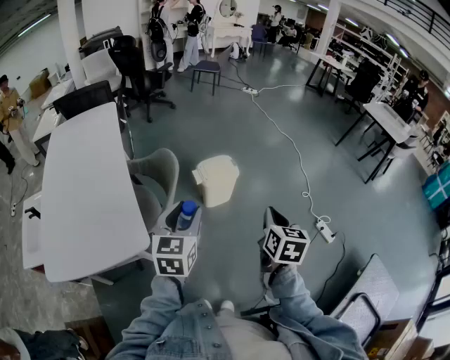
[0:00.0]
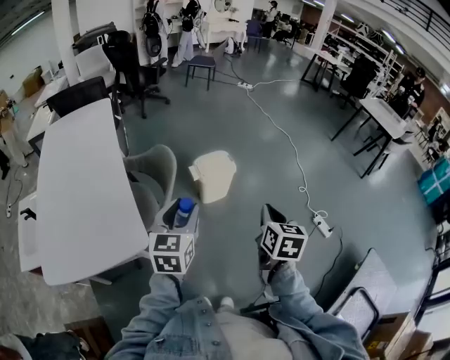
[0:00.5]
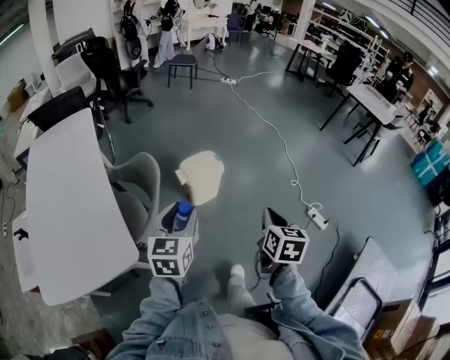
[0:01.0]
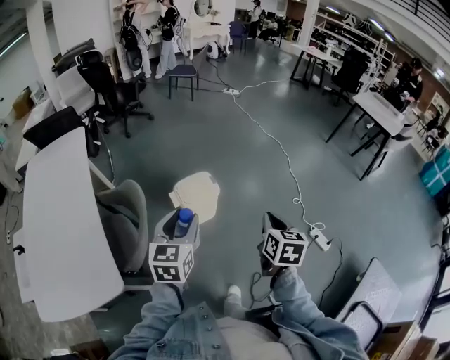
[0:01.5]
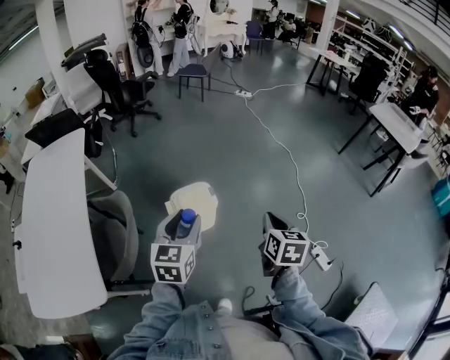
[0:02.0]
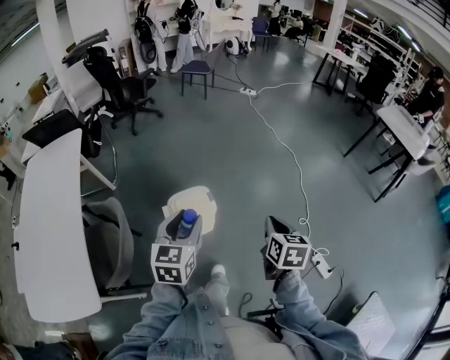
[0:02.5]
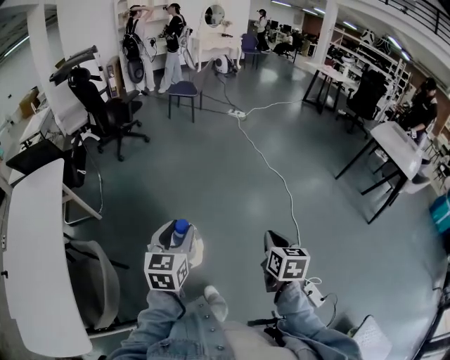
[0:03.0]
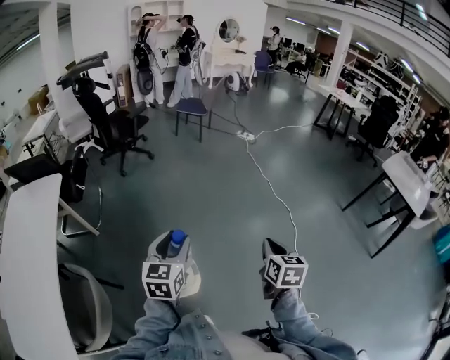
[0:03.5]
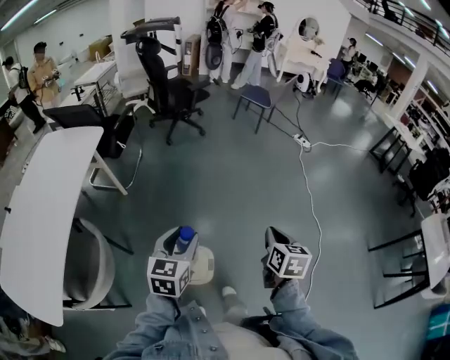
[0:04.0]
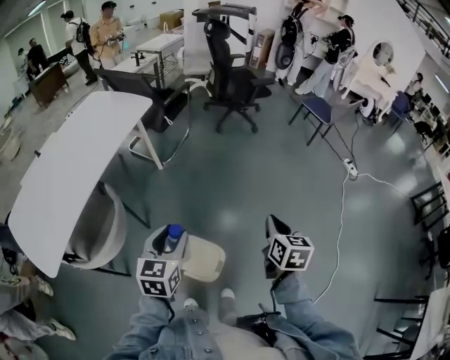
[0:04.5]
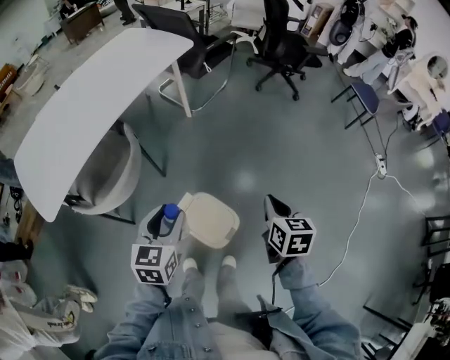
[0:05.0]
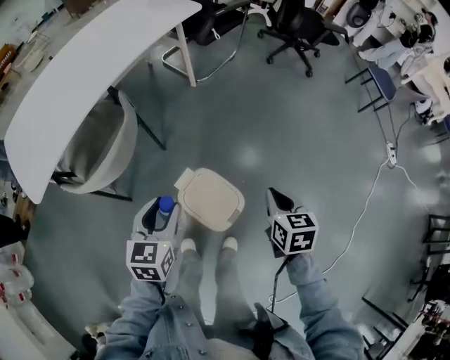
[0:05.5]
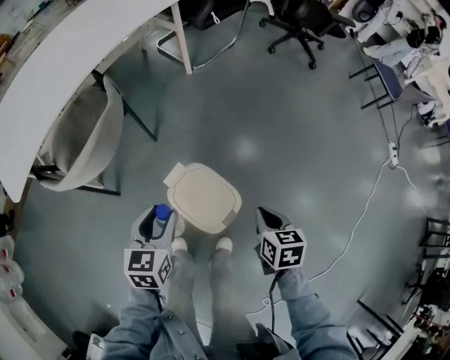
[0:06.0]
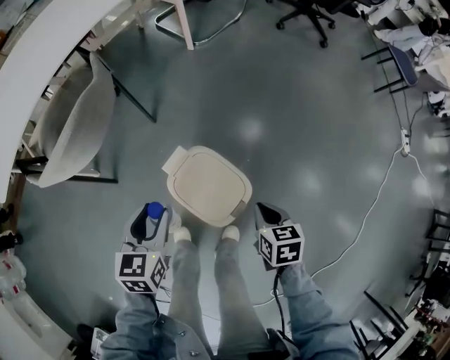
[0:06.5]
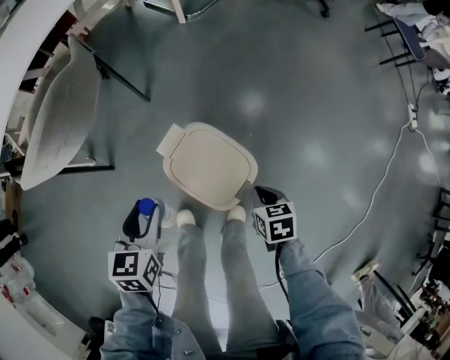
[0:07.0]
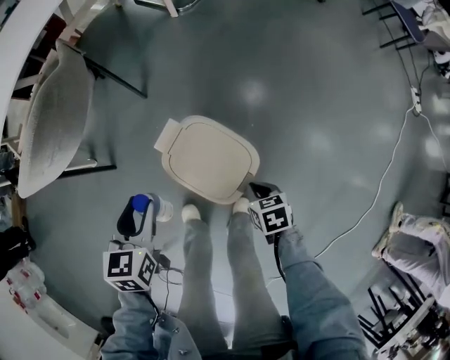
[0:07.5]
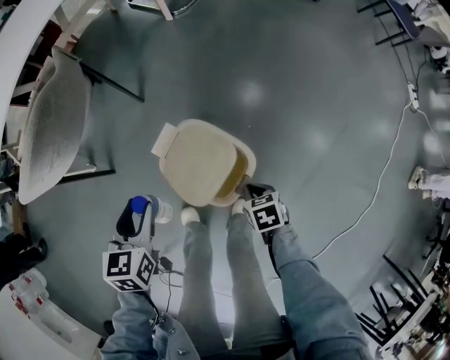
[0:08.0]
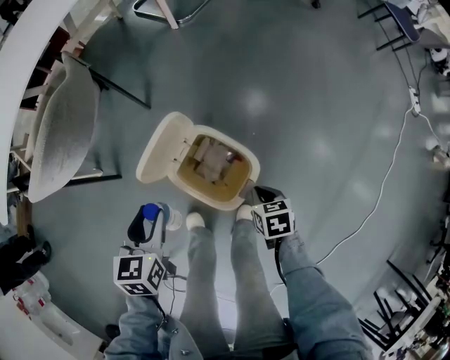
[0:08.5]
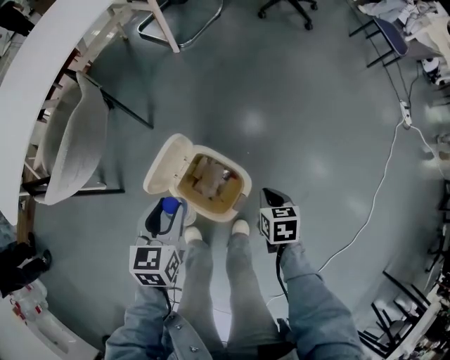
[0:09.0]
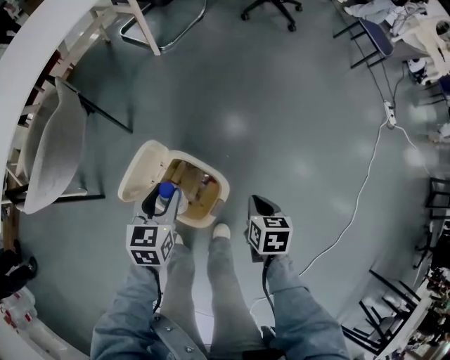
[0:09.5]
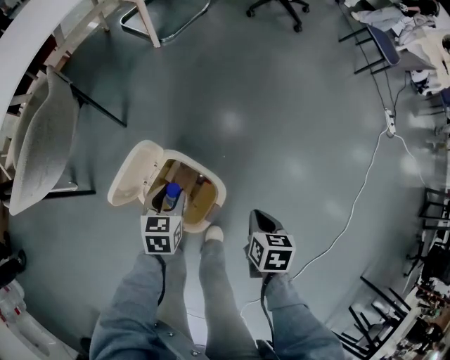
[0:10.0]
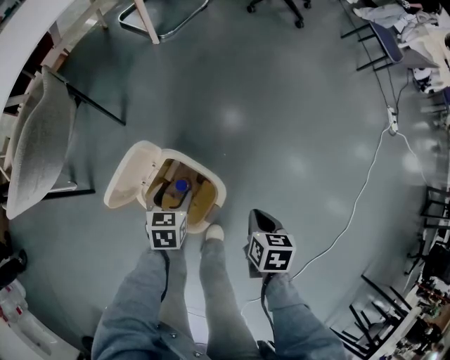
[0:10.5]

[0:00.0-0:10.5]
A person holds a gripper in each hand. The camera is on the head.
0.0 to 2.0 s: The two grippers go roughly 35 cm forward and to the right.
2.0 to 4.0 s: Both grippers are carried forward, approximately 50 cm. The left gripper rotates about 20 degrees. The right gripper changes its angle by roughly 20 degrees.
4.0 to 6.5 s: Both grippers move downward, roughly 40 cm. The left gripper turns by roughly 50 degrees; the right gripper turns by roughly 60 degrees.
6.5 to 8.5 s: The left gripper ends up approximately 5 cm from where it was. The right gripper heads downward, covering approximately 10 cm.
8.5 to 10.5 s: The left gripper heads to the right, downward and forward, covering roughly 20 cm, and opens up, while the right gripper is displaced to the right and upward by approximately 10 cm.

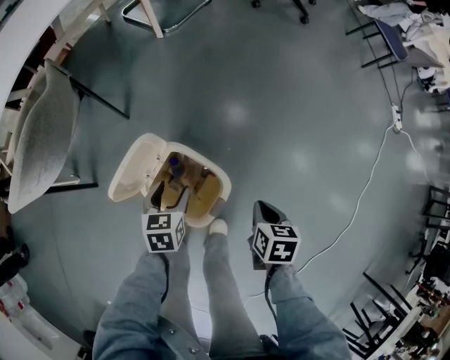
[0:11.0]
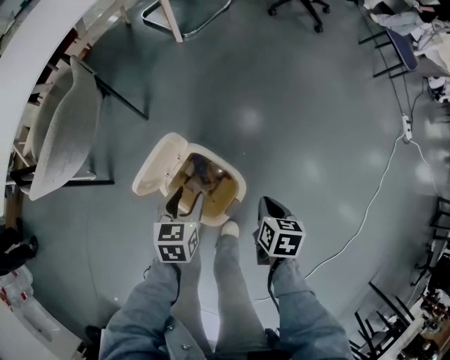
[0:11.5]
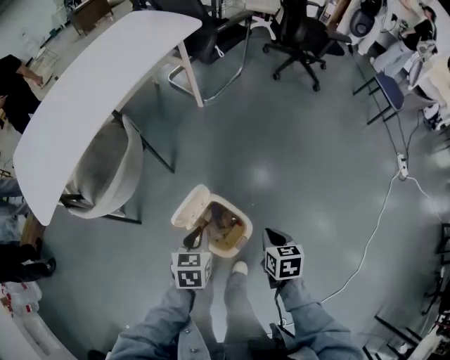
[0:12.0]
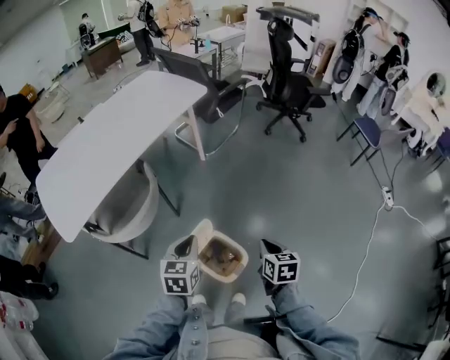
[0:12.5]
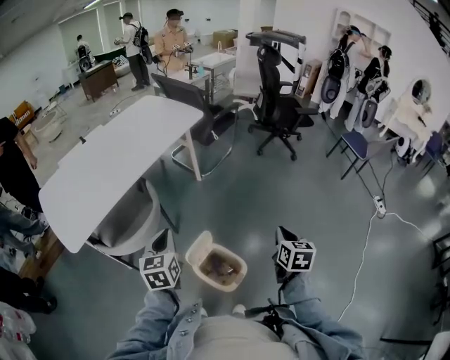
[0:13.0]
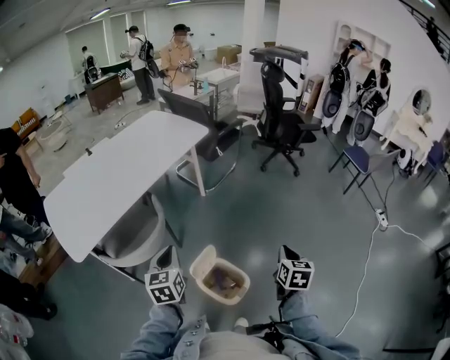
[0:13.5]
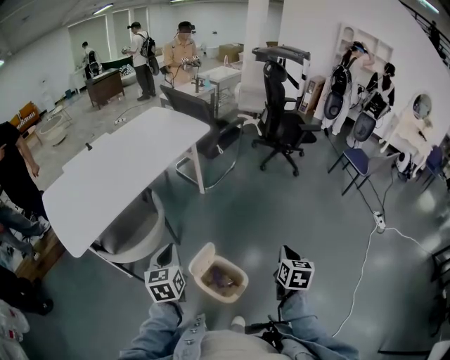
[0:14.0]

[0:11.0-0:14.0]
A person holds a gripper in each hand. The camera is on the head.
11.0 to 12.5 s: The two grippers go about 35 cm upward. The left gripper closes its fingers. The right gripper rotates about 20 degrees.
12.5 to 14.0 s: The right gripper goes some 10 cm upward and to the right; the left gripper is displaced to the left and upward by approximately 15 cm.

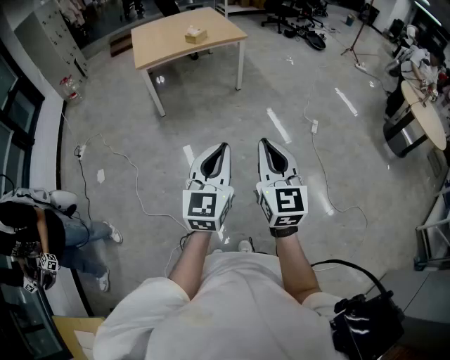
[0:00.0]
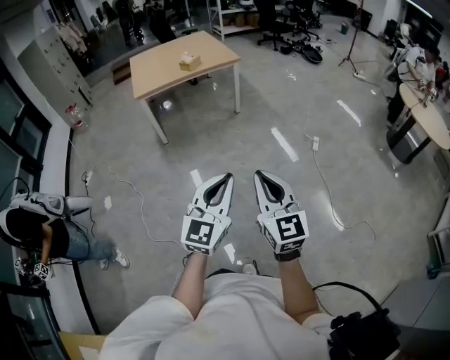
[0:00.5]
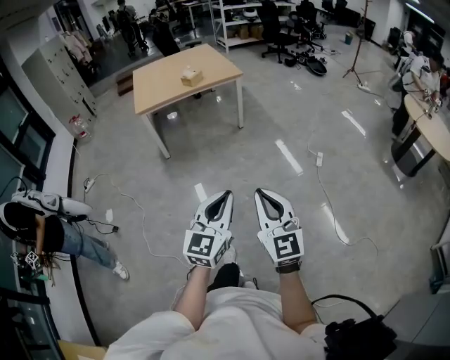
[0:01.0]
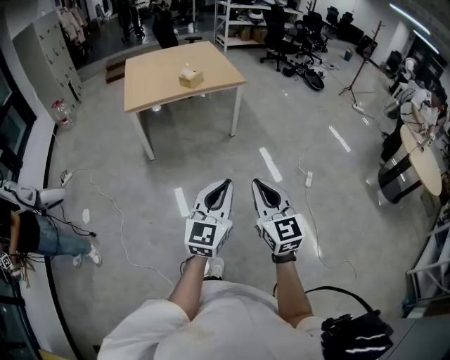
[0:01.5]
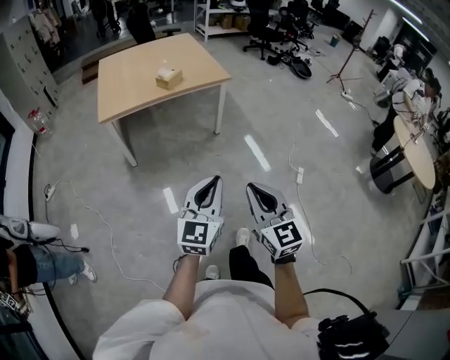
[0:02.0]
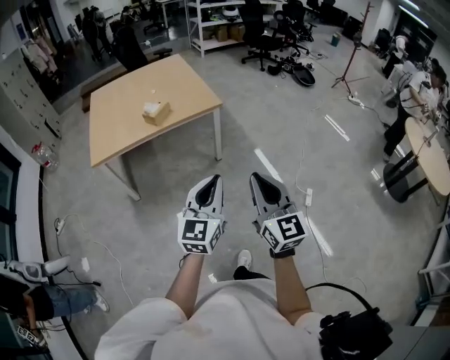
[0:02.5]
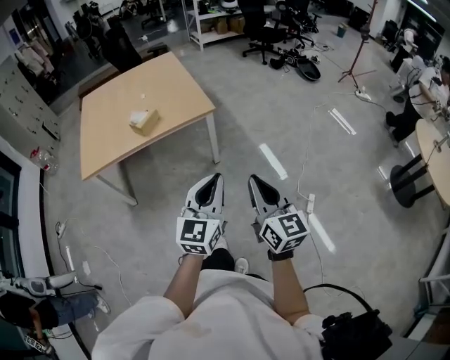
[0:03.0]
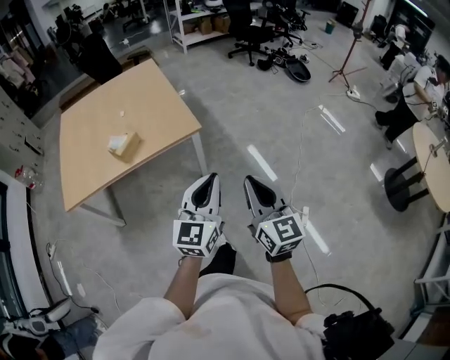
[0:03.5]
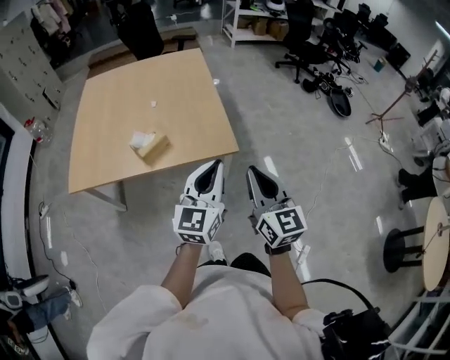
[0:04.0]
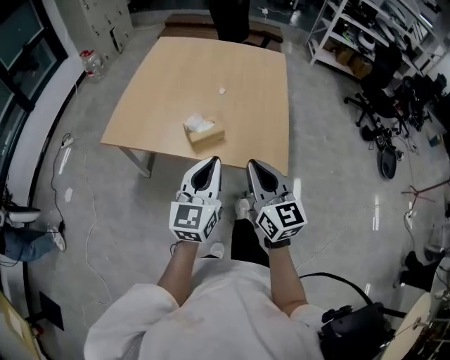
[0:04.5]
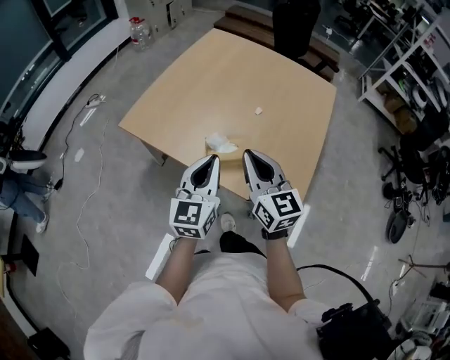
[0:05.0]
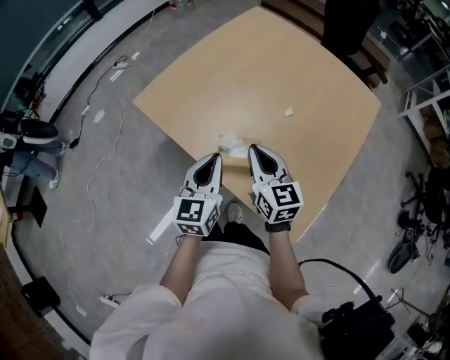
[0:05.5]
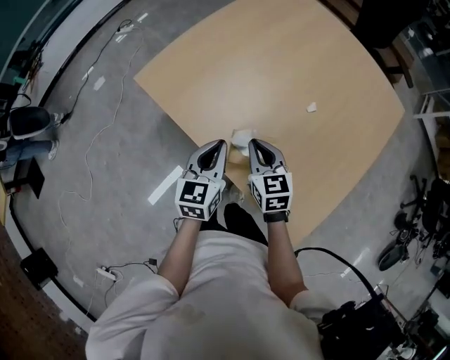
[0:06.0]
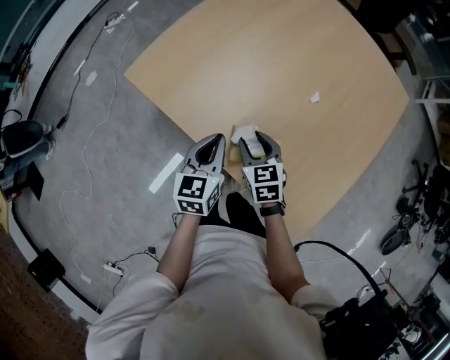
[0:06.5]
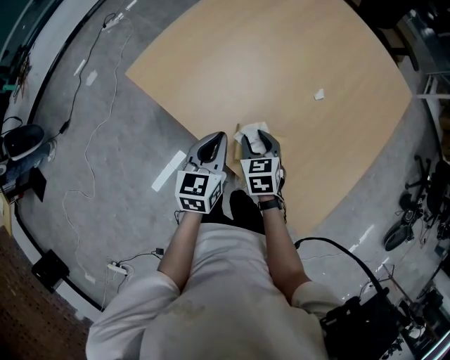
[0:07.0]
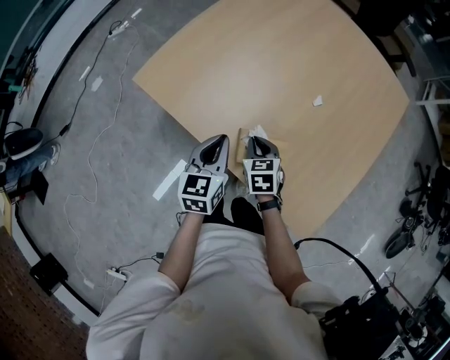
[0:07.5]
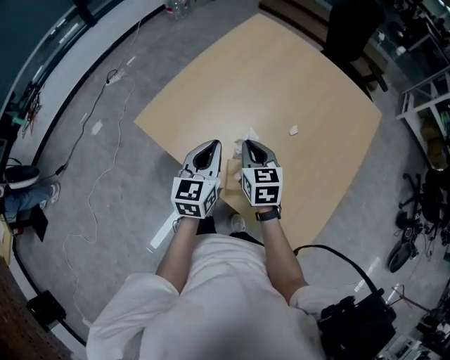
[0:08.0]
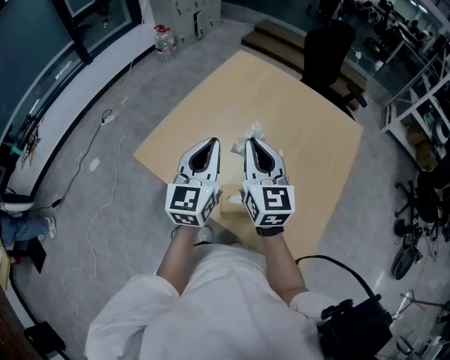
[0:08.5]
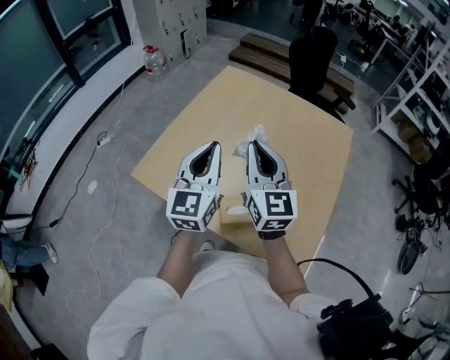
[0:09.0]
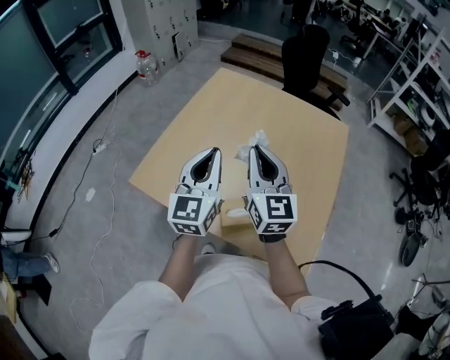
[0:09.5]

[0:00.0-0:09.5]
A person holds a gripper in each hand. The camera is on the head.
0.0 to 2.0 s: The two grippers go some 40 cm forward.
2.0 to 4.0 s: The pair of grippers is taken forward, about 80 cm.
4.0 to 5.5 s: The pair of grippers is taken approximately 50 cm. The right gripper rotates roughly 60 degrees. Meanwhile the left gripper swivels approximately 60 degrees.
5.5 to 7.5 s: The left gripper goes about 15 cm downward and forward; the right gripper shifts about 20 cm downward, angles its fingers downward, by roughly 30 degrees, and opens, then closes once more.
7.5 to 9.5 s: Both grippers move upward, roughly 35 cm. The left gripper rotates roughly 30 degrees. The right gripper tilts its fingers approximately 50 degrees upward.

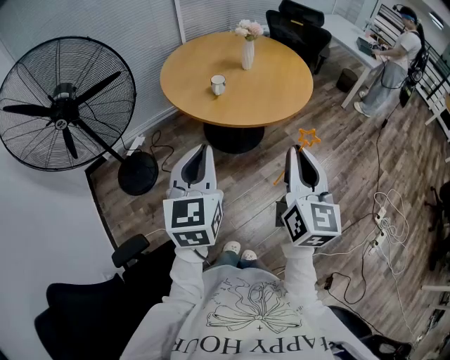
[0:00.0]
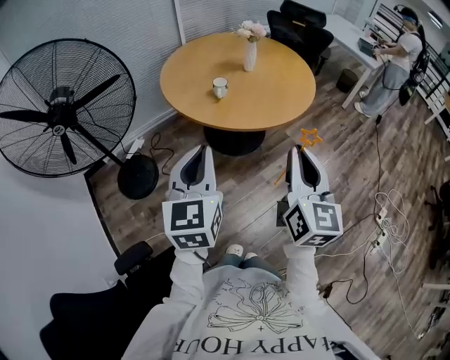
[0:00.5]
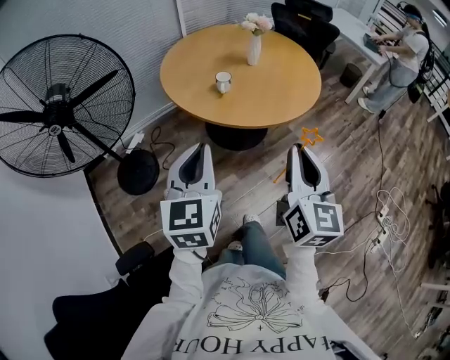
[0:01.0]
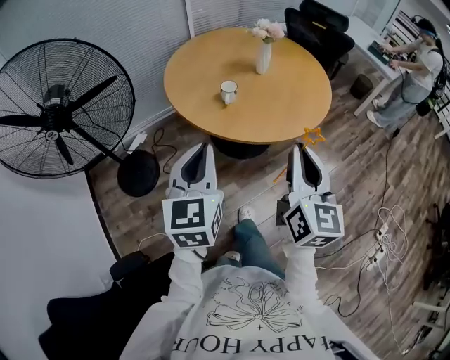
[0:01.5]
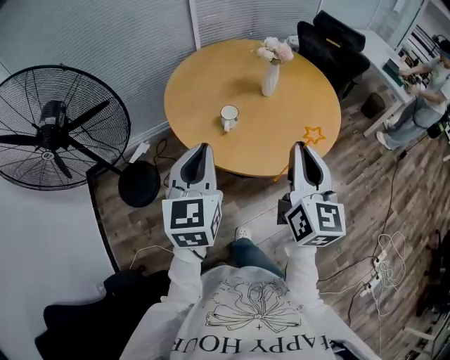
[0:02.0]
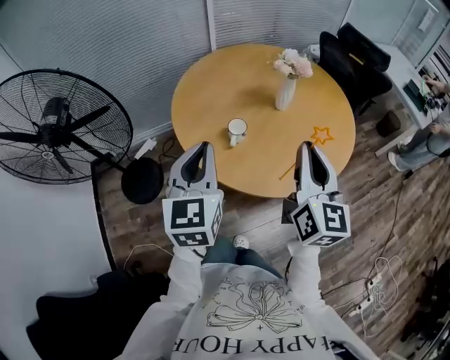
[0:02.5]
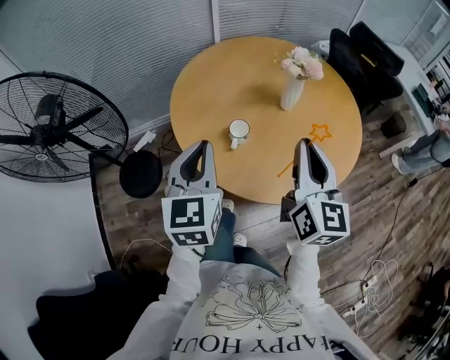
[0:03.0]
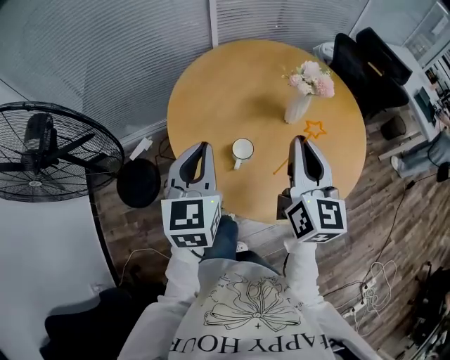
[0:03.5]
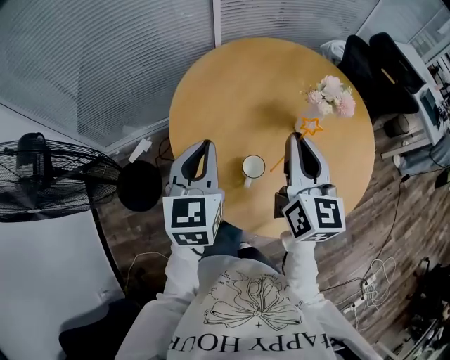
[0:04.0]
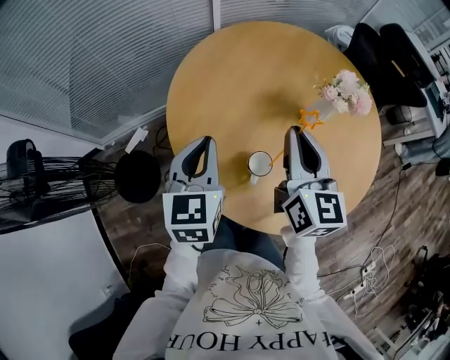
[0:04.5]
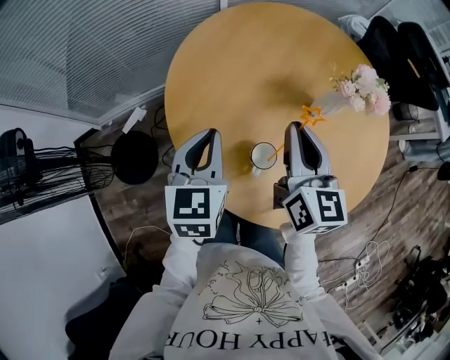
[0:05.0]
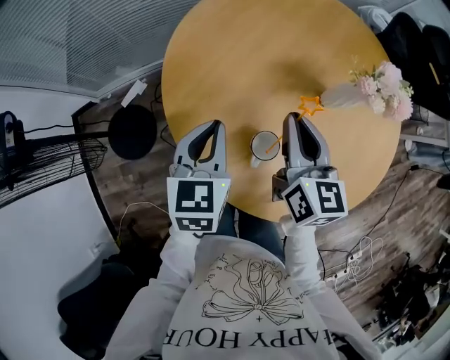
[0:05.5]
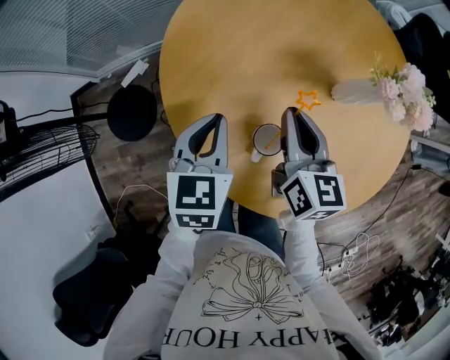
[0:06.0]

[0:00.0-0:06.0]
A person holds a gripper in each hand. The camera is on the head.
0.0 to 2.0 s: The grippers both shift forward by about 30 cm.
2.0 to 4.0 s: The two grippers go some 35 cm forward.
4.0 to 6.0 s: The two grippers go approximately 20 cm downward. The right gripper swivels approximately 20 degrees.
